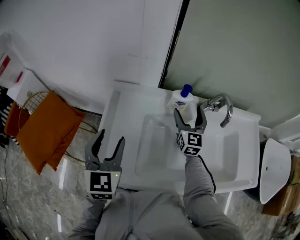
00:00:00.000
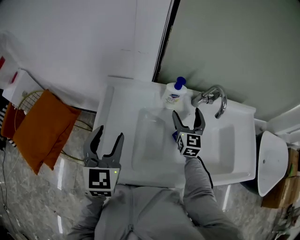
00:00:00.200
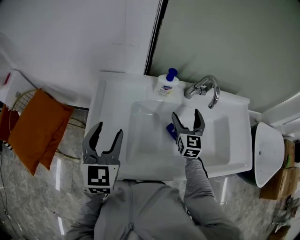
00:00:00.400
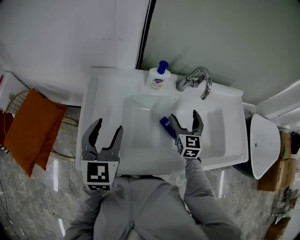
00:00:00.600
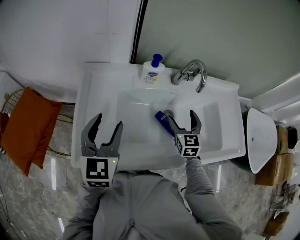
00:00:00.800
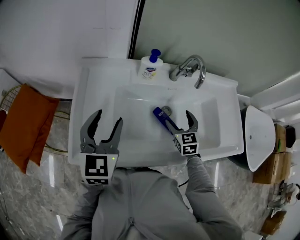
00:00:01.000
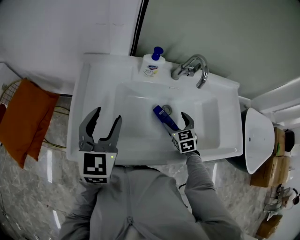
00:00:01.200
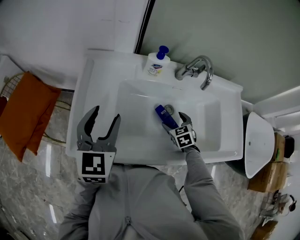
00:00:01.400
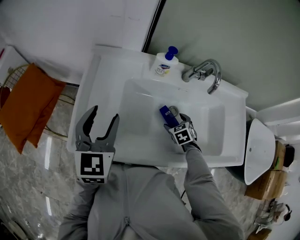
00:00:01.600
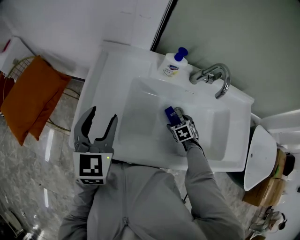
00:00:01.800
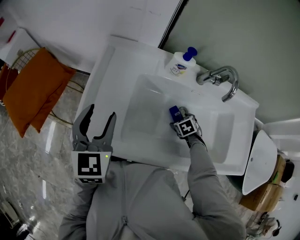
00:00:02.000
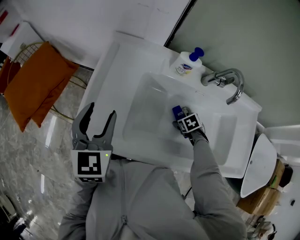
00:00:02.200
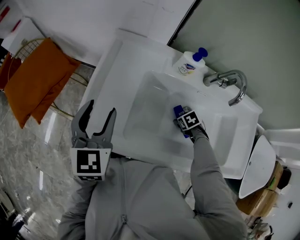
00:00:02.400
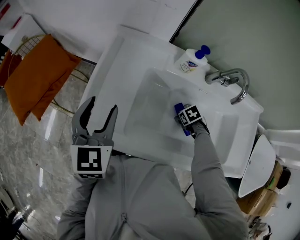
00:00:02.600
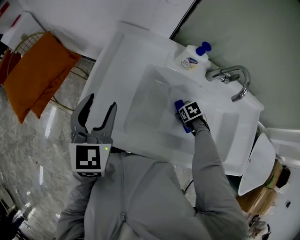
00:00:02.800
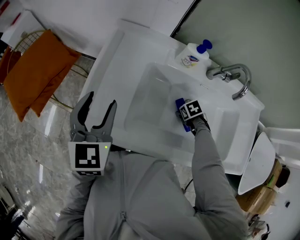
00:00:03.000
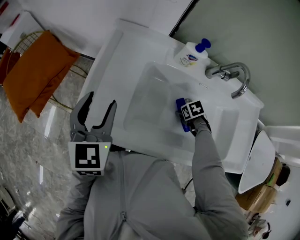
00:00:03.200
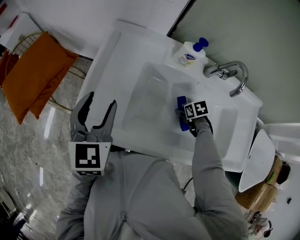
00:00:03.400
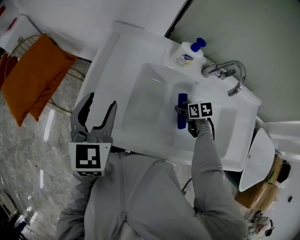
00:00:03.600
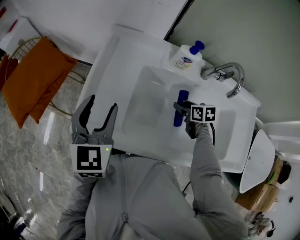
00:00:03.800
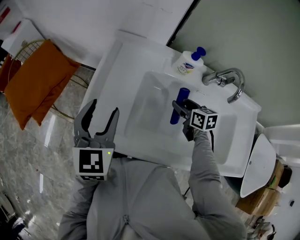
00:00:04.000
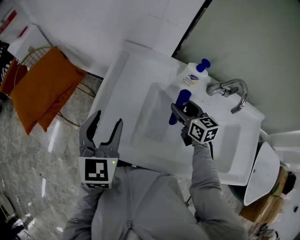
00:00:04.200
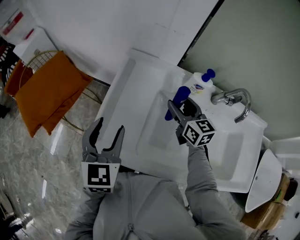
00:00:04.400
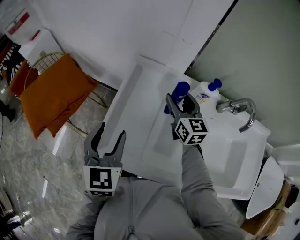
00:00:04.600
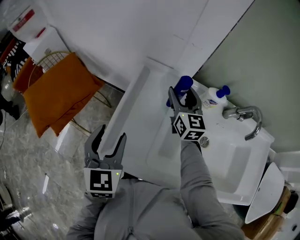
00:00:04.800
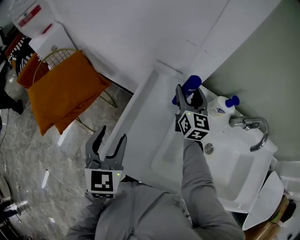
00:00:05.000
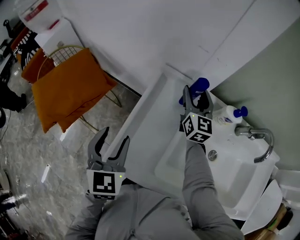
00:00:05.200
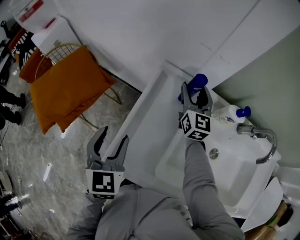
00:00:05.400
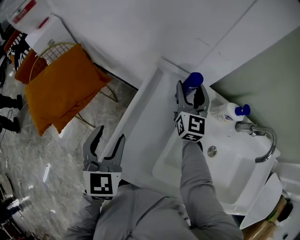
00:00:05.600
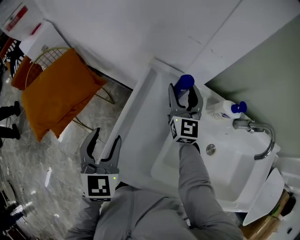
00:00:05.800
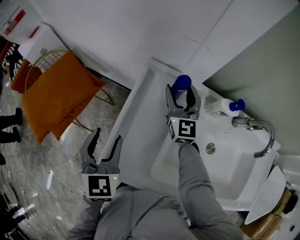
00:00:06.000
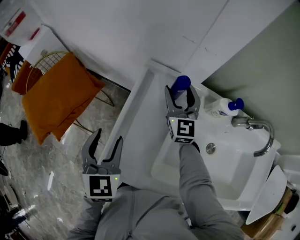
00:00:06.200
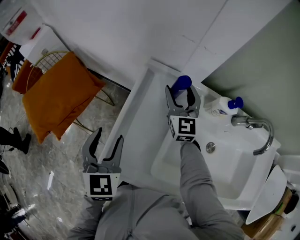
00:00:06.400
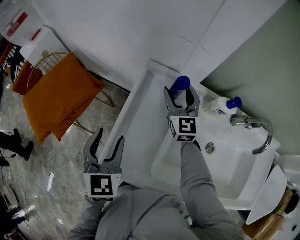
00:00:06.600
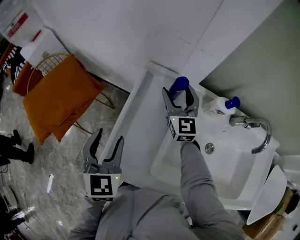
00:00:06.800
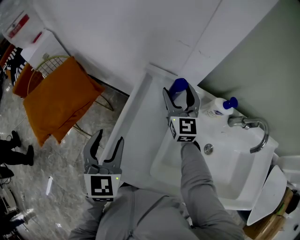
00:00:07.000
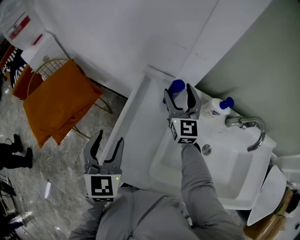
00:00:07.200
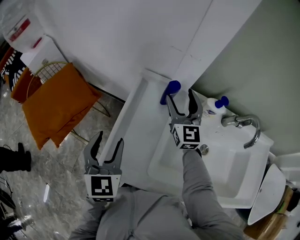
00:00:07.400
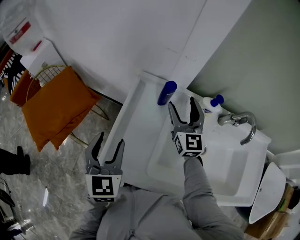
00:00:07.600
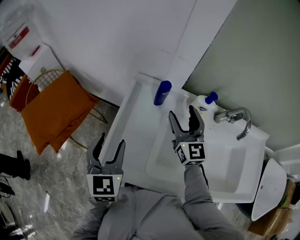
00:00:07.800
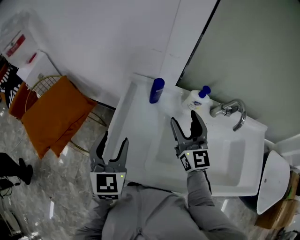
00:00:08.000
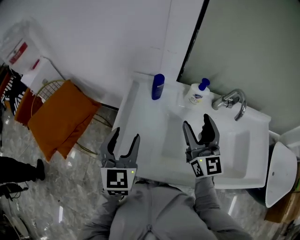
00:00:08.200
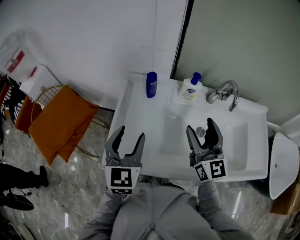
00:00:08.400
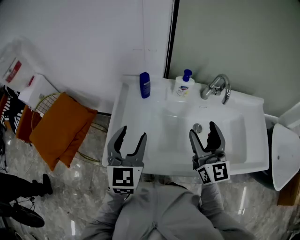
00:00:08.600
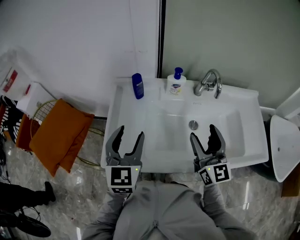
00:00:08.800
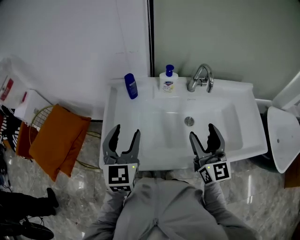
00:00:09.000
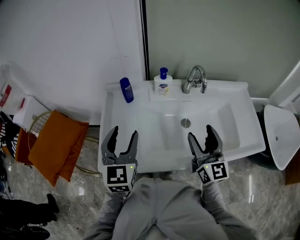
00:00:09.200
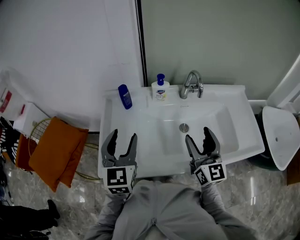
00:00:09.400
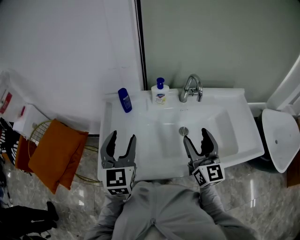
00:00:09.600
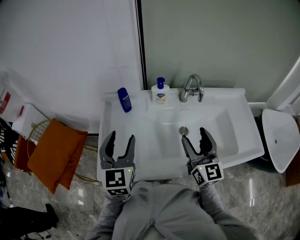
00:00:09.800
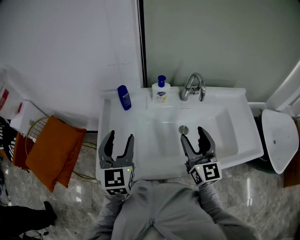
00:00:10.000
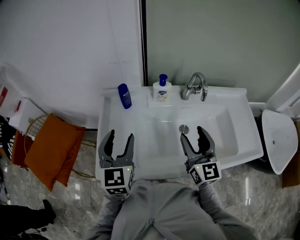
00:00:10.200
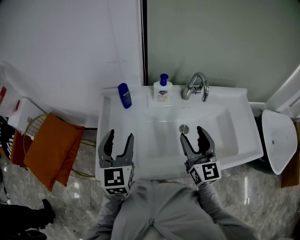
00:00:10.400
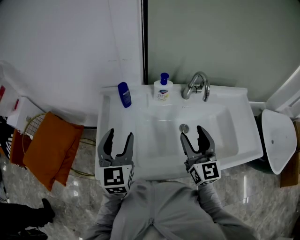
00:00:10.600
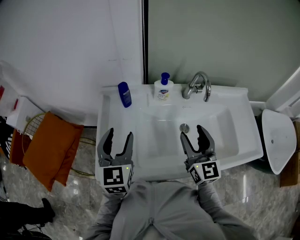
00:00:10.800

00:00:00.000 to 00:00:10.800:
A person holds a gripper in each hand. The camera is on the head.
00:00:00.000 to 00:00:01.600: The right gripper goes approximately 30 cm downward, backward and to the right, and angles its fingers downward, by some 60 degrees. The left gripper heads to the right, covering some 5 cm.
00:00:01.600 to 00:00:03.000: The right gripper moves about 5 cm, and turns by some 30 degrees. Meanwhile the left gripper moves roughly 5 cm.
00:00:03.000 to 00:00:04.600: The right gripper goes approximately 25 cm upward, and angles its fingers upward, by approximately 70 degrees.
00:00:04.600 to 00:00:06.200: The left gripper travels forward by roughly 5 cm; the right gripper goes some 10 cm forward and to the left.
00:00:06.200 to 00:00:07.800: The right gripper moves backward, upward and to the right, roughly 15 cm. Meanwhile the left gripper changes place by some 5 cm.
00:00:07.800 to 00:00:09.200: The left gripper shifts roughly 15 cm to the right, and turns by some 20 degrees. The right gripper shifts approximately 30 cm backward and to the right, and rotates about 20 degrees.
00:00:09.200 to 00:00:10.800: The right gripper moves roughly 5 cm.

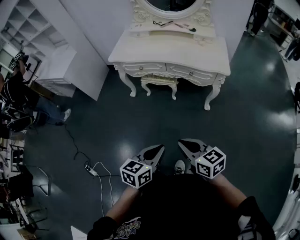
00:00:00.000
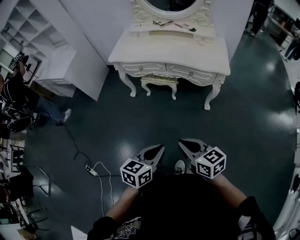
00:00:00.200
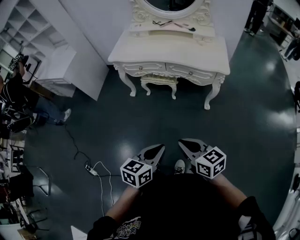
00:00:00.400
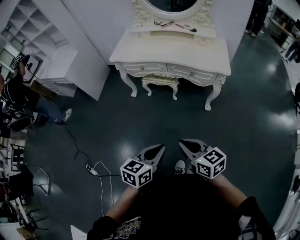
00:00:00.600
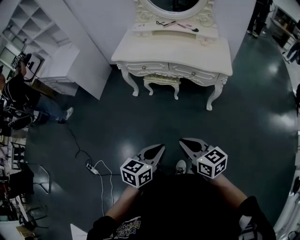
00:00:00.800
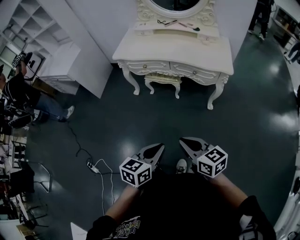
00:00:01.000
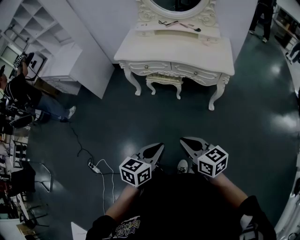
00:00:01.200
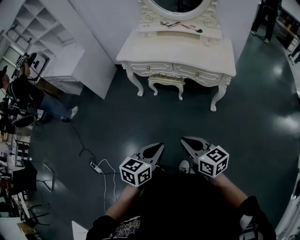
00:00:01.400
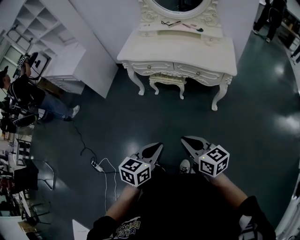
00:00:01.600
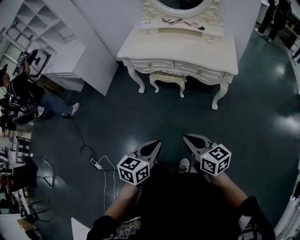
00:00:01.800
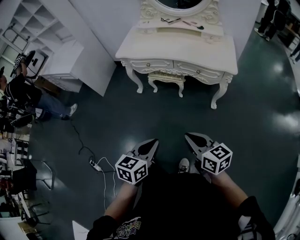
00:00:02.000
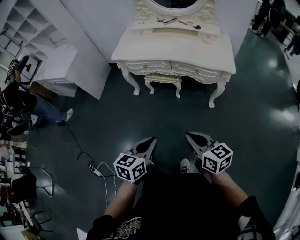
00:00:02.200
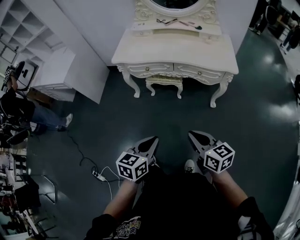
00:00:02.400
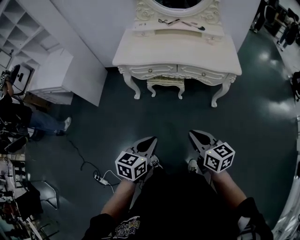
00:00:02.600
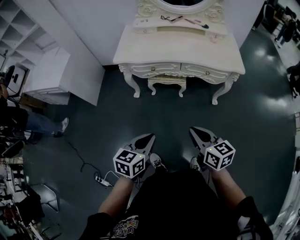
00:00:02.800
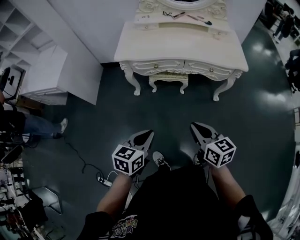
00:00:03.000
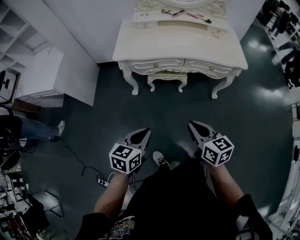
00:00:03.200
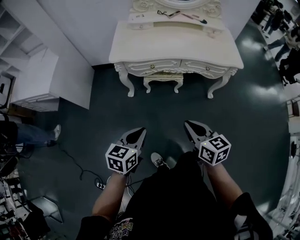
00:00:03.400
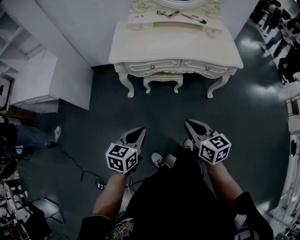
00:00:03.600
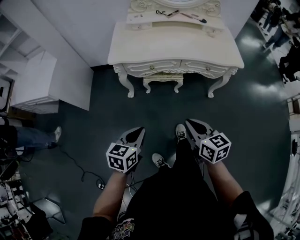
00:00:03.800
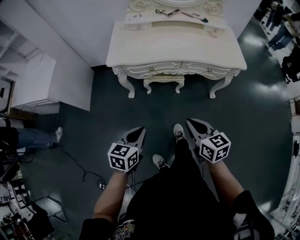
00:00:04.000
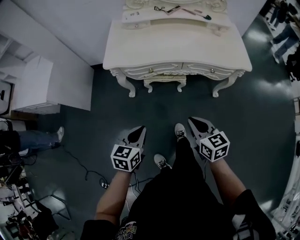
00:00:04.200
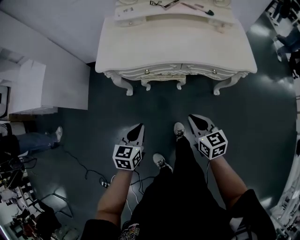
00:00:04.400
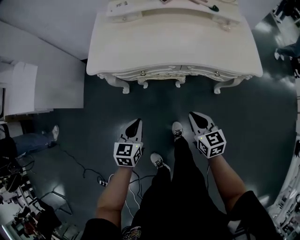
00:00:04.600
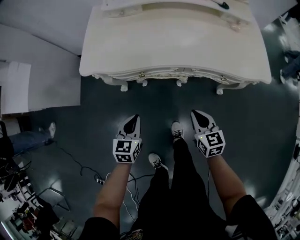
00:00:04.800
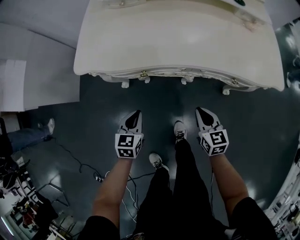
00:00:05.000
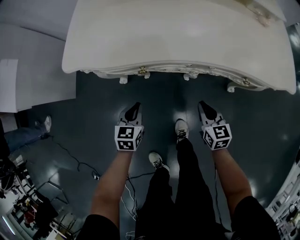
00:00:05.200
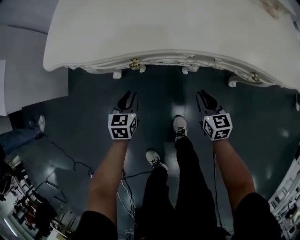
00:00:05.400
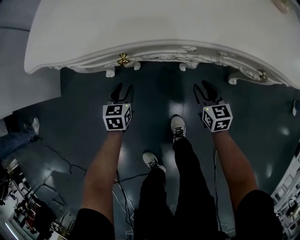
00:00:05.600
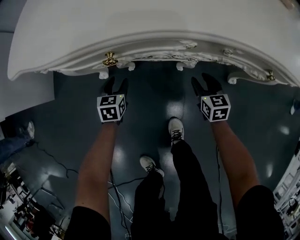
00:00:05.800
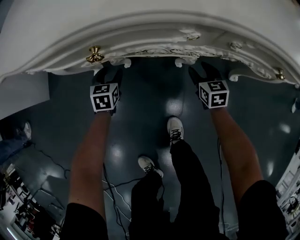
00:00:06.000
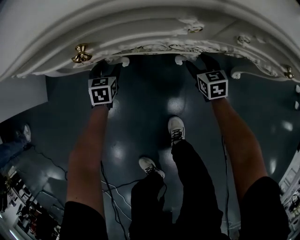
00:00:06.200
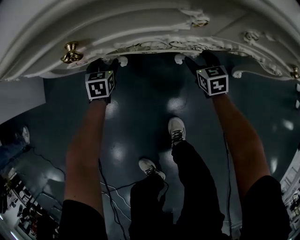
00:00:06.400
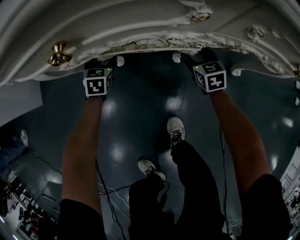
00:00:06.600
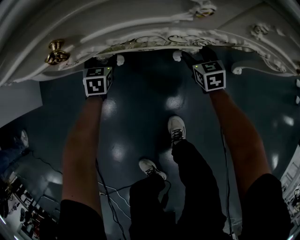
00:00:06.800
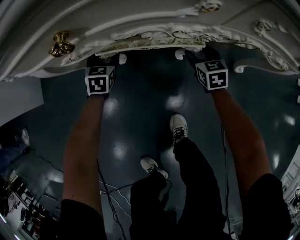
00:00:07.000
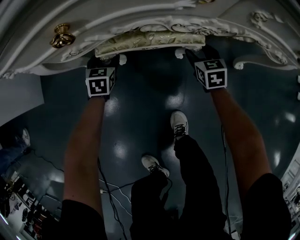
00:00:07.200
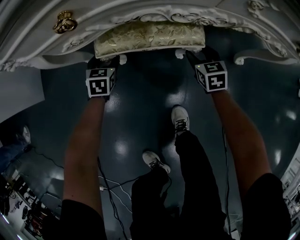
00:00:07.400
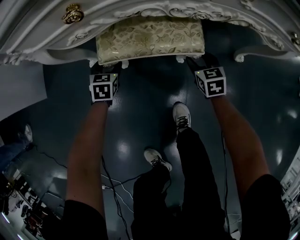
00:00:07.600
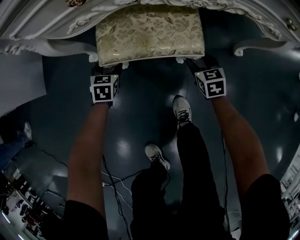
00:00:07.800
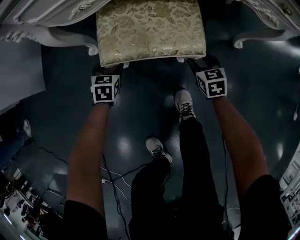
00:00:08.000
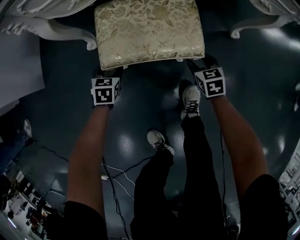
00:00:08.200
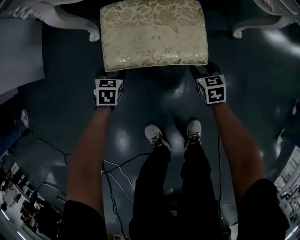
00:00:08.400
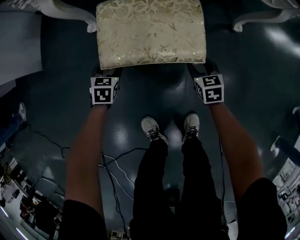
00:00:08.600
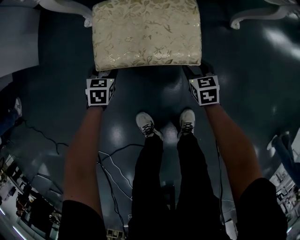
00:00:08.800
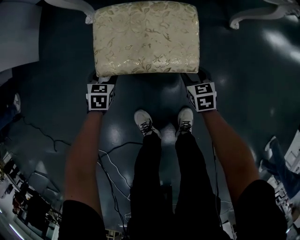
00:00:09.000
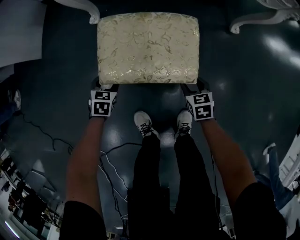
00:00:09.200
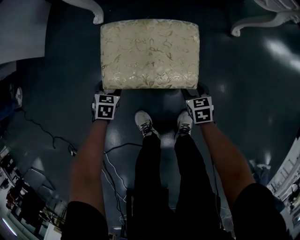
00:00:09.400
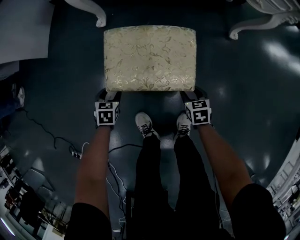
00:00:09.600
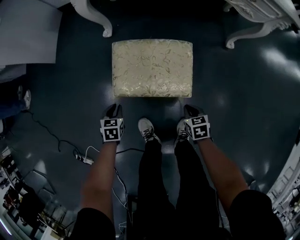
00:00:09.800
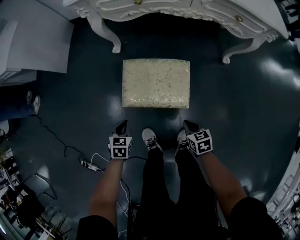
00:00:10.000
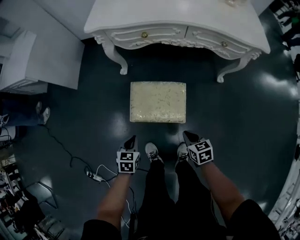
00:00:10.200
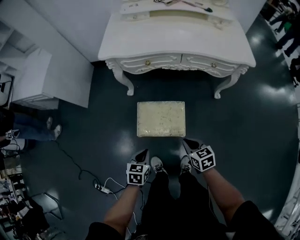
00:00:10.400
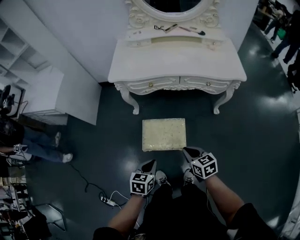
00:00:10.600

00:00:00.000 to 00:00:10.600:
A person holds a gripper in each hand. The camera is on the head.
00:00:00.000 to 00:00:01.600: The grippers move only a little.
00:00:01.600 to 00:00:03.000: Both grippers travel together to the left and forward, roughly 25 cm. The right gripper changes its angle by approximately 20 degrees.
00:00:03.000 to 00:00:04.600: Both grippers move forward and downward, some 30 cm.
00:00:04.600 to 00:00:06.000: The grippers both shift downward and forward by roughly 50 cm. The right gripper opens its fingers. Meanwhile the left gripper opens.
00:00:06.000 to 00:00:07.600: The right gripper goes roughly 10 cm backward and downward, while the left gripper goes roughly 5 cm downward.
00:00:07.600 to 00:00:09.000: The grippers both shift backward by roughly 10 cm.
00:00:09.000 to 00:00:10.600: Both grippers move upward, approximately 50 cm. The left gripper rotates some 20 degrees, and closes its fingers, while the right gripper turns by about 20 degrees, and closes up.

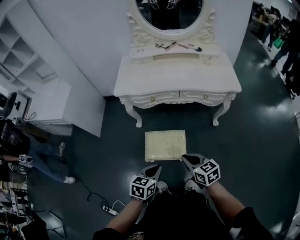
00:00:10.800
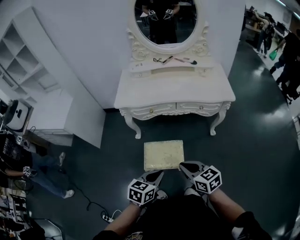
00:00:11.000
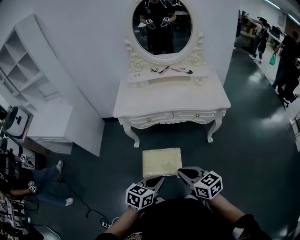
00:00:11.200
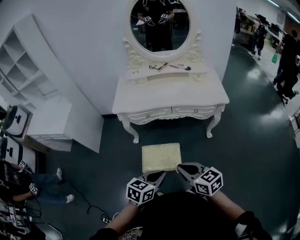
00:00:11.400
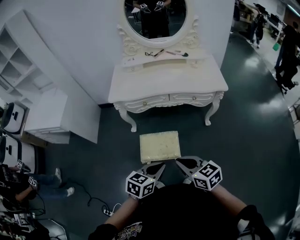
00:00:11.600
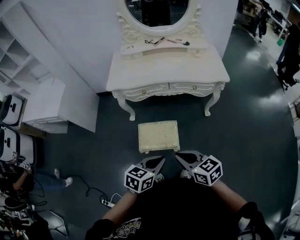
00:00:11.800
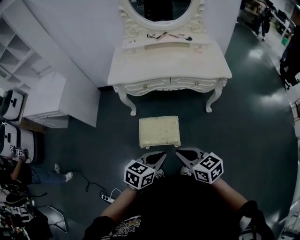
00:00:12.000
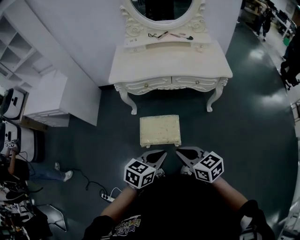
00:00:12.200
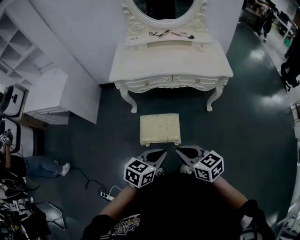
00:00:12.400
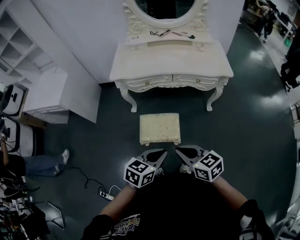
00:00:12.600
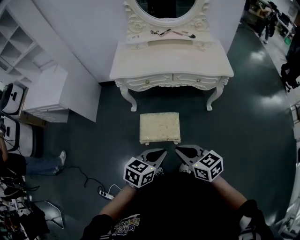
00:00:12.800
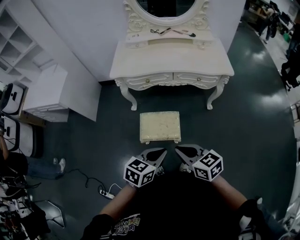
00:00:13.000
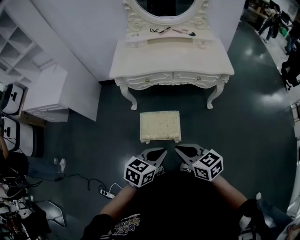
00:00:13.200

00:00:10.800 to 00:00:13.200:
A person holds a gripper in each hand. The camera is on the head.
00:00:10.800 to 00:00:12.000: The left gripper is displaced upward and to the right by approximately 10 cm. Meanwhile the right gripper is displaced upward and backward by about 15 cm.
00:00:12.000 to 00:00:13.200: The grippers move only a little.
